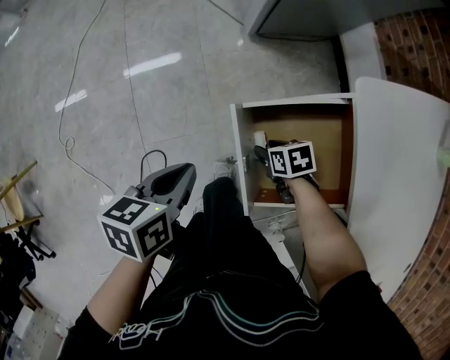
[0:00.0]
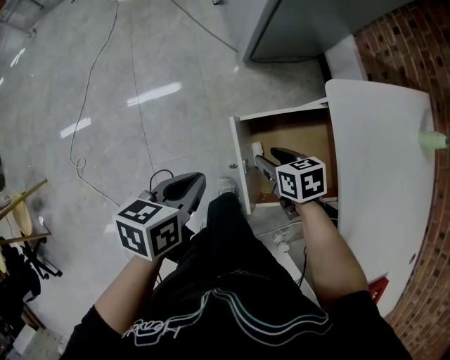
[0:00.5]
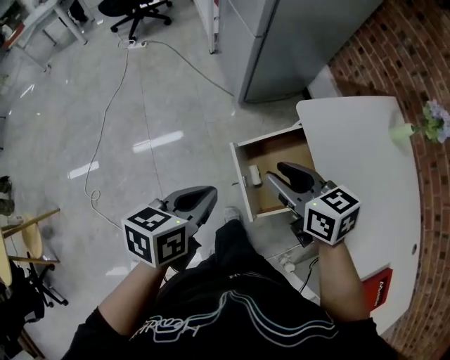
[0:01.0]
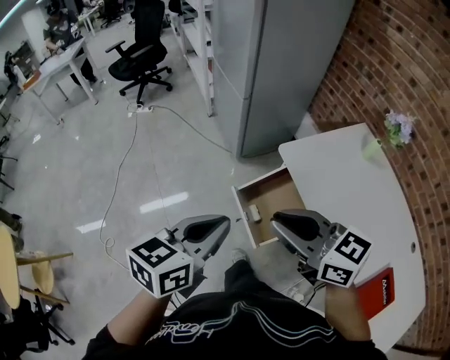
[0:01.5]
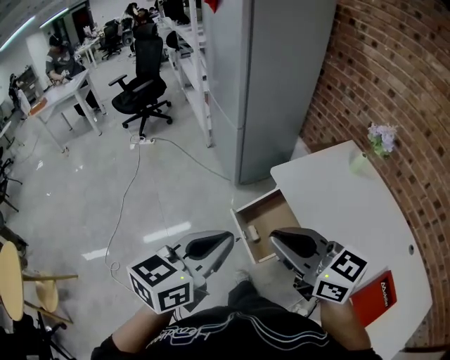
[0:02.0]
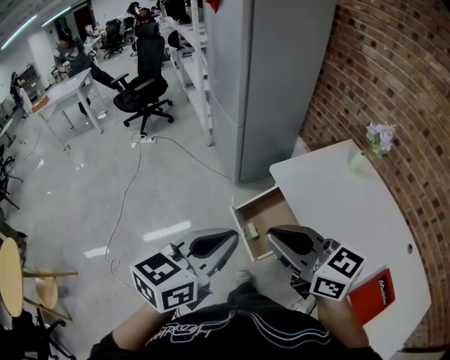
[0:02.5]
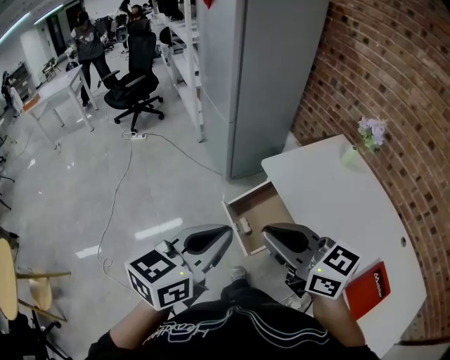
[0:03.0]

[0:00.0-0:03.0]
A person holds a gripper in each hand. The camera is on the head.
0:00.0 to 0:01.5: The left gripper moves upward, about 35 cm, and turns by roughly 40 degrees. The right gripper shifts approximately 60 cm upward, tilts its fingers roughly 50 degrees upward, and closes its fingers.
0:01.5 to 0:03.0: The left gripper shifts roughly 10 cm upward and backward. The right gripper travels backward and upward by some 10 cm.

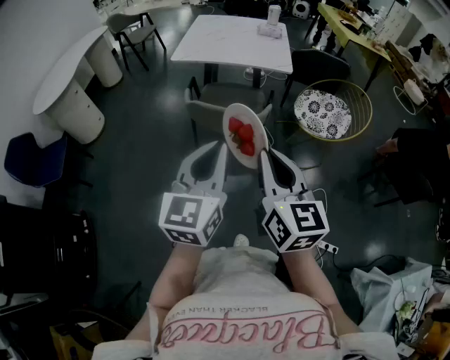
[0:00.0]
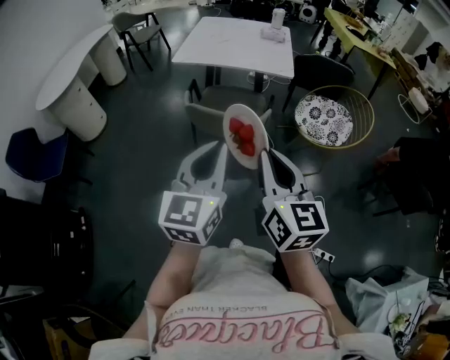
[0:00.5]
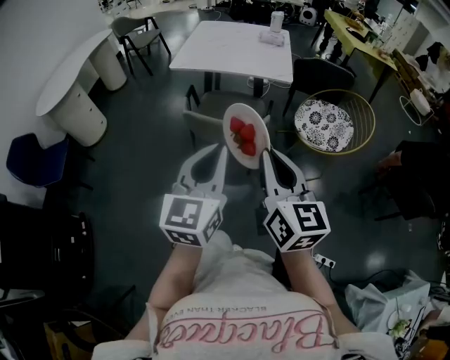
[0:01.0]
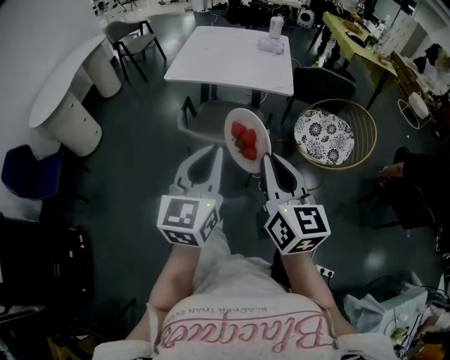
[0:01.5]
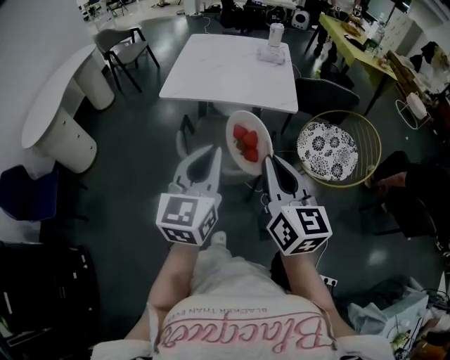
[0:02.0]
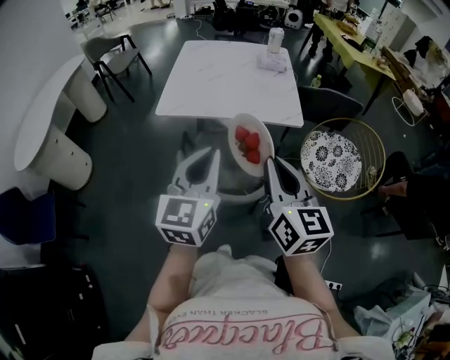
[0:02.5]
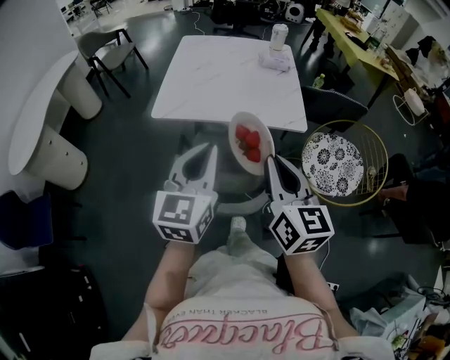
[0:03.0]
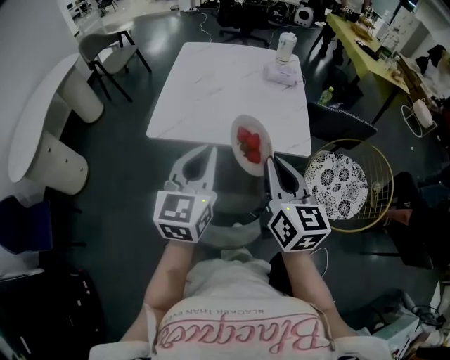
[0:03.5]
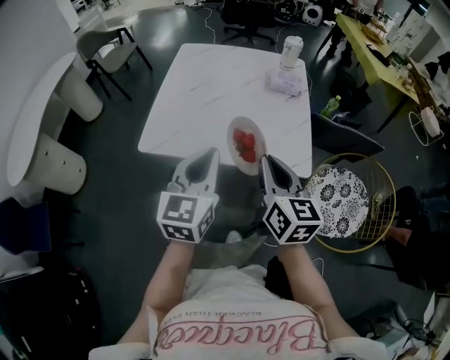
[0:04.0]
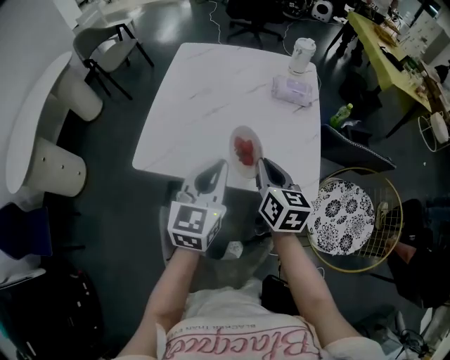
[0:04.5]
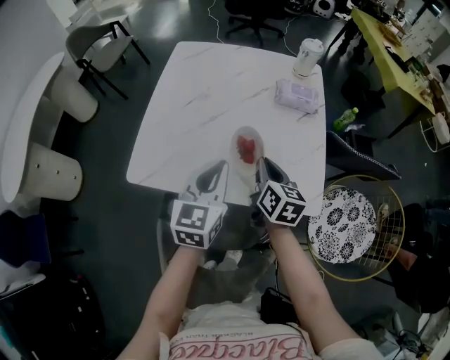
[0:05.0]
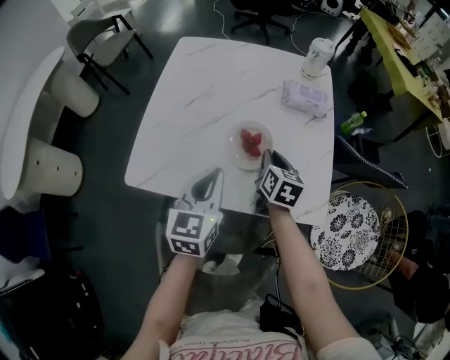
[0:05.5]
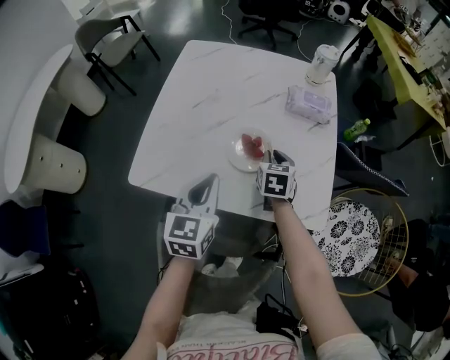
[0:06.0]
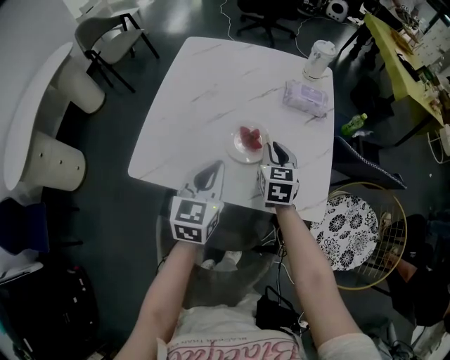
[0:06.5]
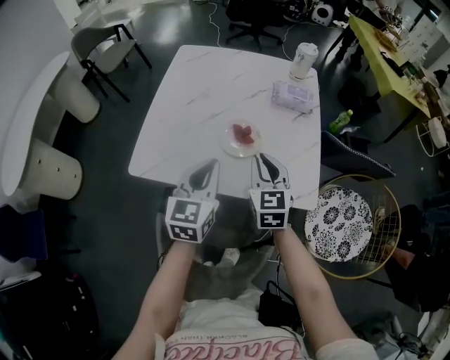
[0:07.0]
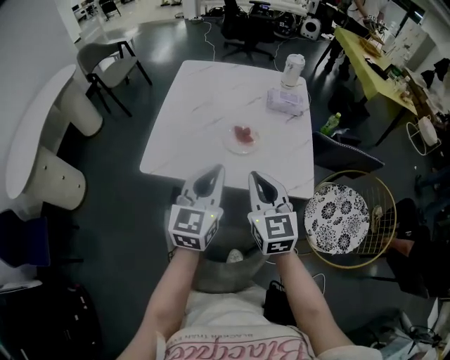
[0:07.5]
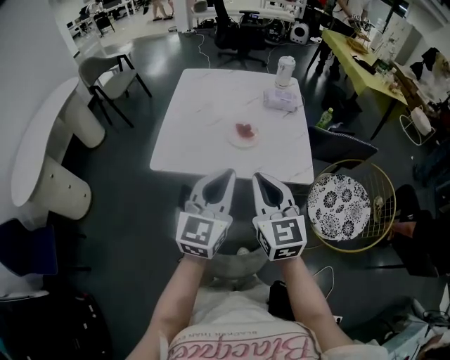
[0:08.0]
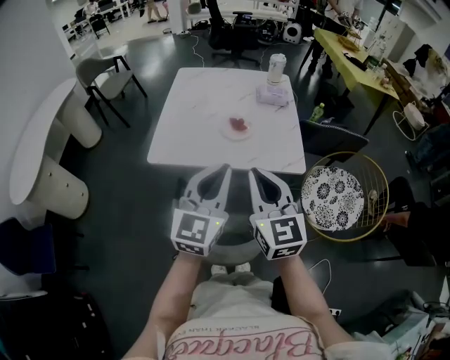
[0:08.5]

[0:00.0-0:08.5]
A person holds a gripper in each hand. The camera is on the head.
0:00.0 to 0:02.0: The grippers both shift forward by approximately 25 cm.
0:02.0 to 0:04.0: The two grippers go some 40 cm forward.
0:04.0 to 0:06.5: The left gripper is displaced forward and downward by roughly 20 cm. Meanwhile the right gripper goes roughly 35 cm forward and downward, and swivels about 30 degrees.
0:06.5 to 0:08.5: Both grippers travel together backward and upward, approximately 40 cm. The left gripper swivels roughly 30 degrees. The right gripper rotates roughly 30 degrees.

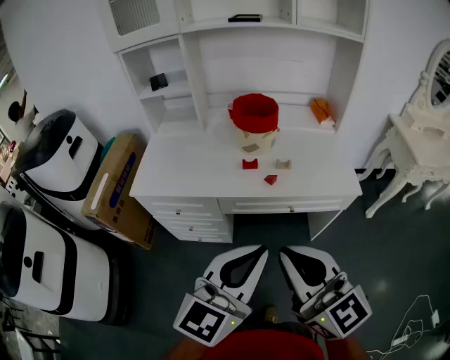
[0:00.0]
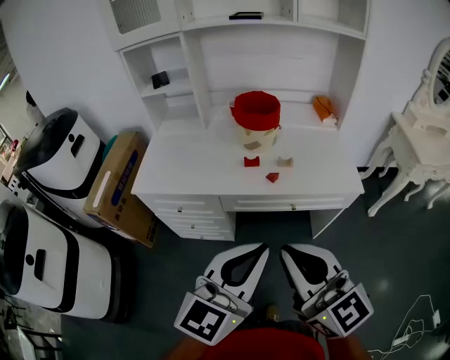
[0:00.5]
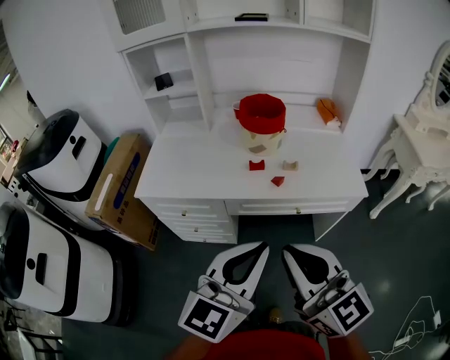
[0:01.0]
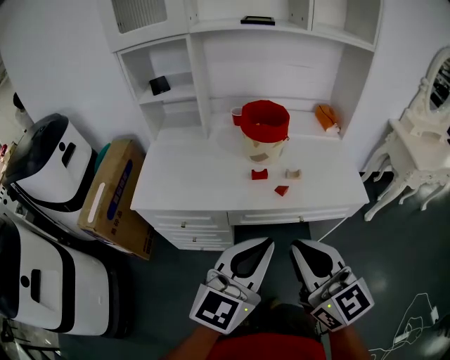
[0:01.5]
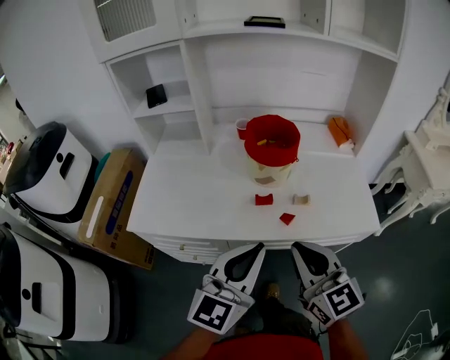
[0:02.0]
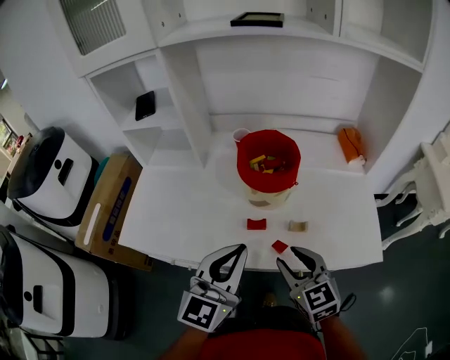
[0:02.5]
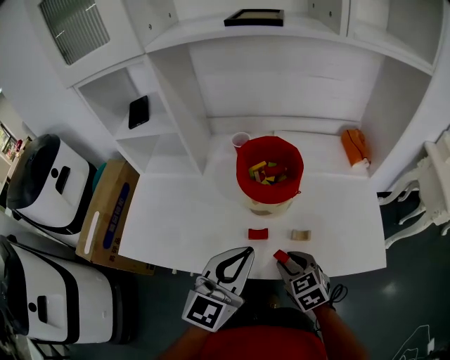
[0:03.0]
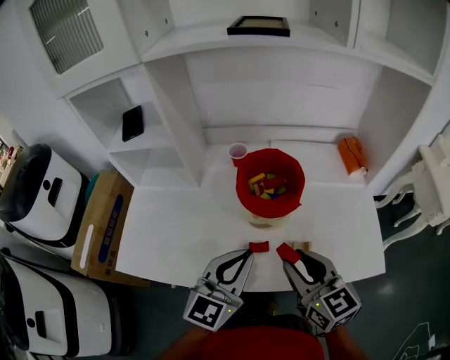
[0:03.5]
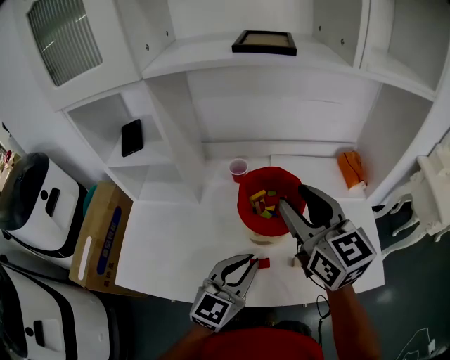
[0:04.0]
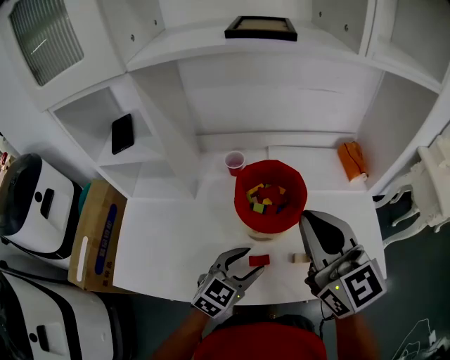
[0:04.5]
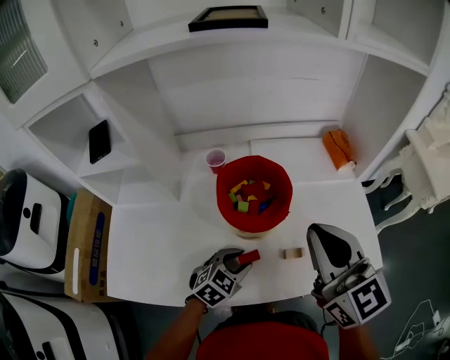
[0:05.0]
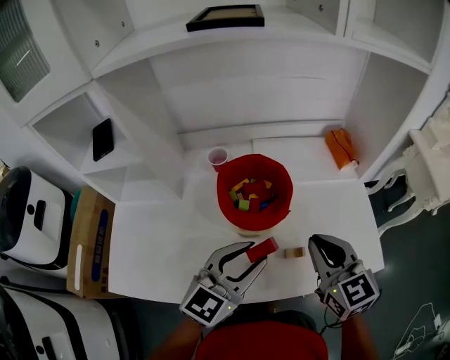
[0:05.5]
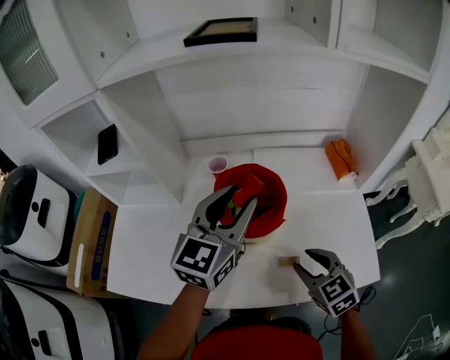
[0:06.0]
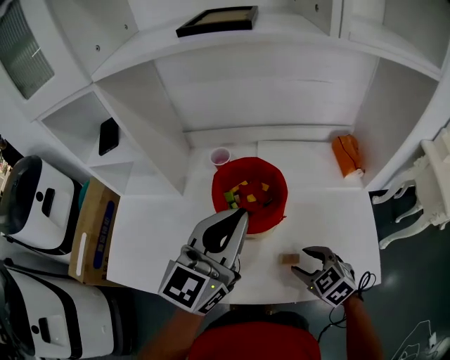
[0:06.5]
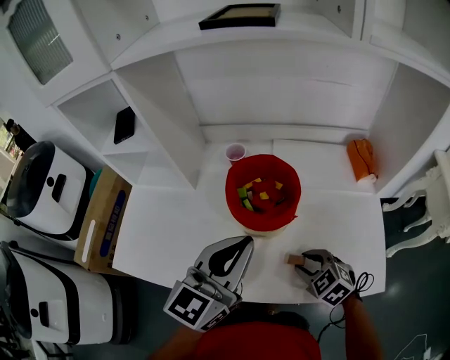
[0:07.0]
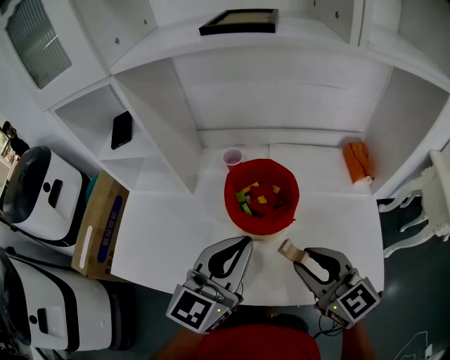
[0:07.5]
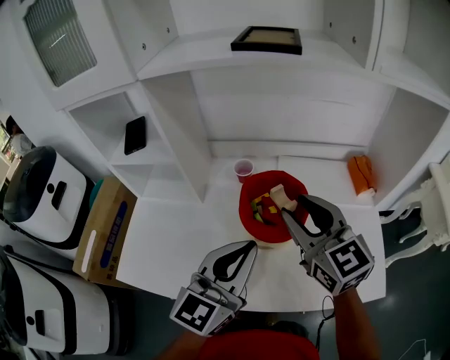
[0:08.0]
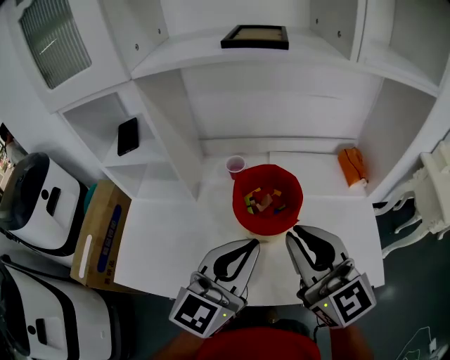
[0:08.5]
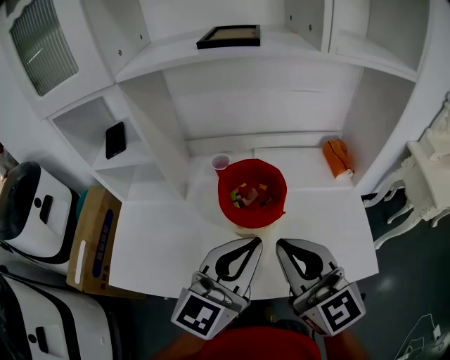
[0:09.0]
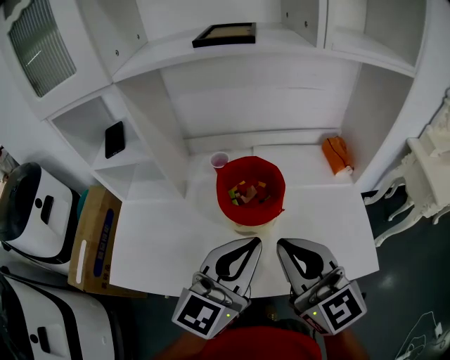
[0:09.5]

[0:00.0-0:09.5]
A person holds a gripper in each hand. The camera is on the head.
0:00.0 to 0:02.0: The left gripper shifts some 20 cm forward. The right gripper heads forward and downward, covering some 20 cm.
0:02.0 to 0:04.0: The two grippers go about 25 cm forward. The right gripper opens its fingers.
0:04.0 to 0:05.5: The right gripper shifts roughly 15 cm downward, to the right and backward, and closes; the left gripper reaches roughly 15 cm downward, then returns, and opens up.
0:05.5 to 0:07.5: The right gripper reaches approximately 20 cm downward, then returns, rotates some 20 degrees, and opens; the left gripper heads upward, covering some 5 cm, goes forward and returns, about 10 cm each way, swivels about 20 degrees, and closes its fingers.
0:07.5 to 0:09.5: The left gripper changes place by about 5 cm. Meanwhile the right gripper shifts roughly 10 cm upward, moves roughly 10 cm forward and comes back, changes its angle by roughly 20 degrees, and closes up.

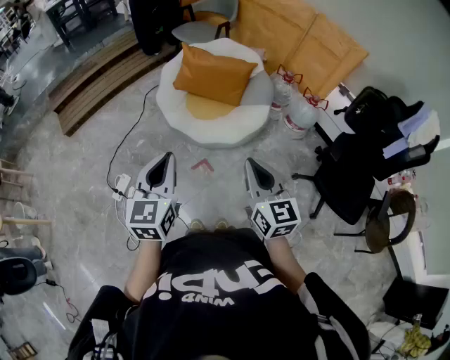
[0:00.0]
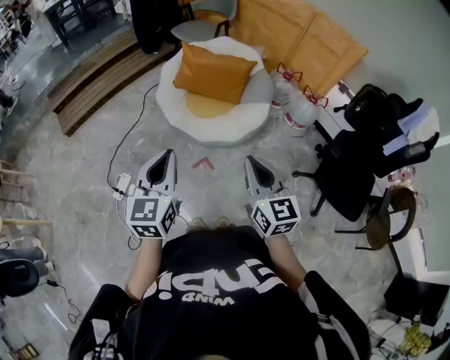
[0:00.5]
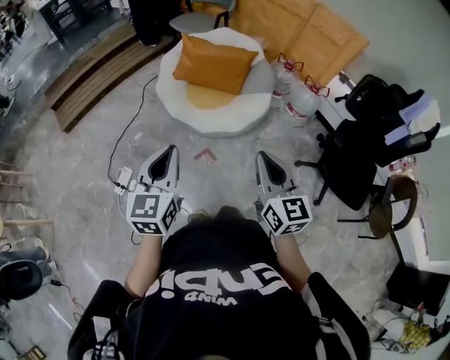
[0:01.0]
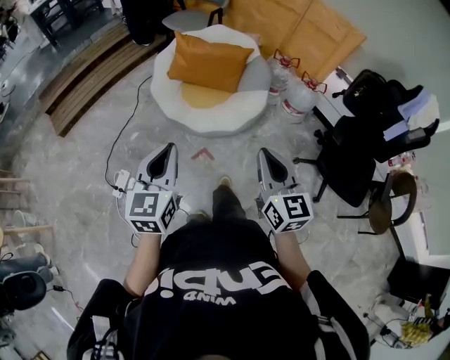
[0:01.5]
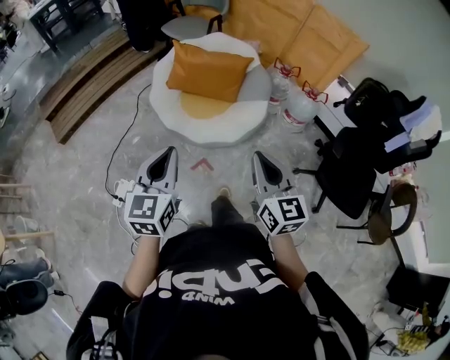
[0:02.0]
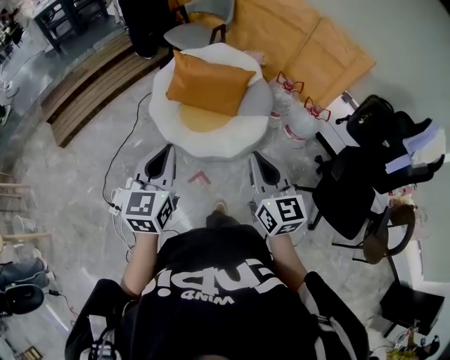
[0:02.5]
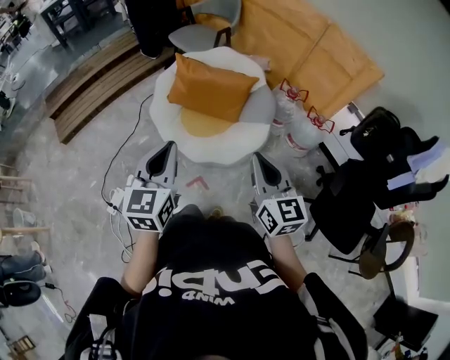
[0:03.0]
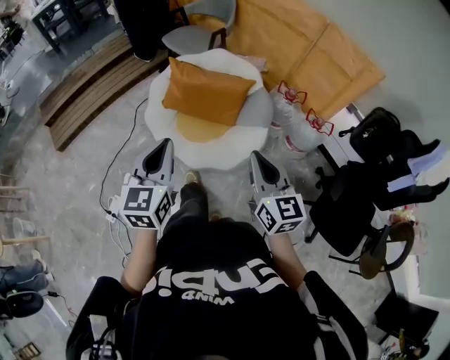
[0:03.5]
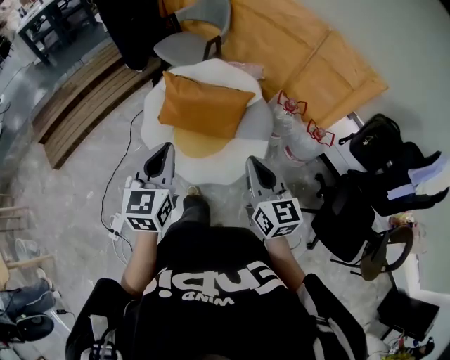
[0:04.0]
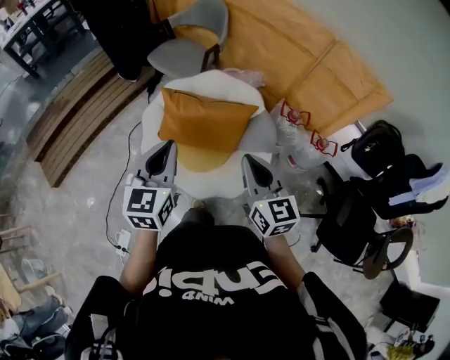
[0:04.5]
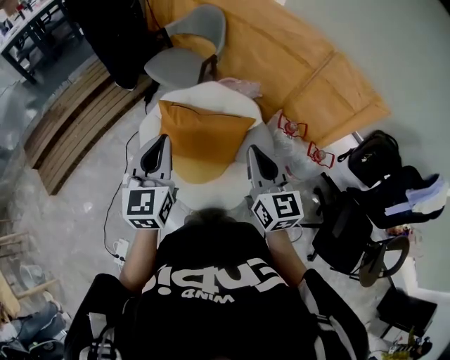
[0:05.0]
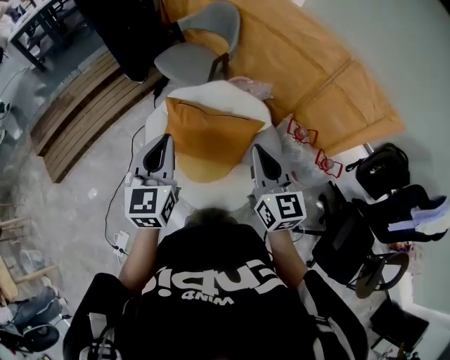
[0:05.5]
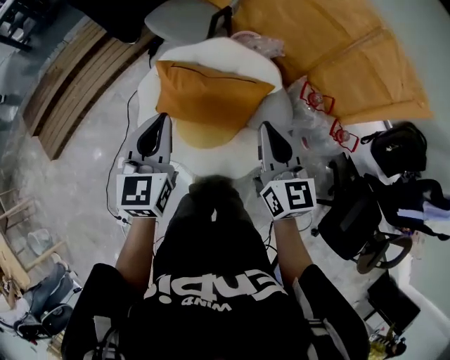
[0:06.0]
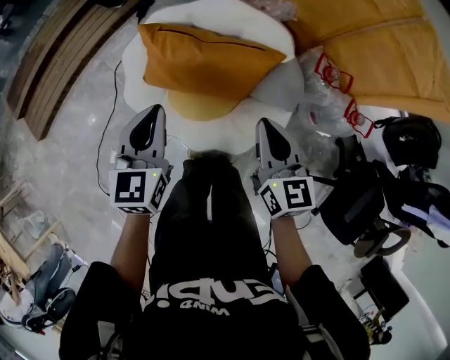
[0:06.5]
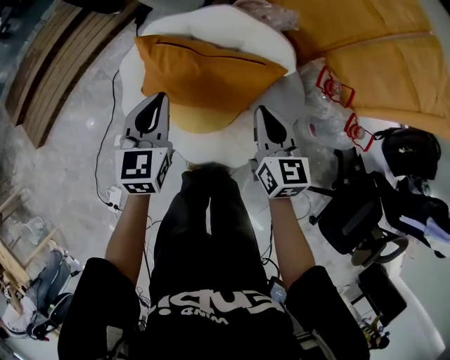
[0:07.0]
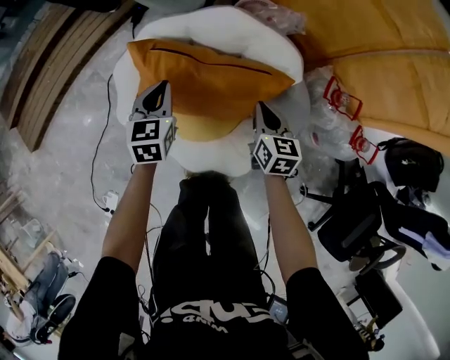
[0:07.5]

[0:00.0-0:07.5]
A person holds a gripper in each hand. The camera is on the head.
0:00.0 to 0:02.0: Both grippers move forward, some 5 cm.
0:02.0 to 0:04.0: The two grippers go roughly 30 cm forward.
0:04.0 to 0:05.5: The two grippers go some 25 cm forward.
0:05.5 to 0:07.5: The grippers both shift downward and forward by roughly 50 cm. The left gripper rotates about 30 degrees. Meanwhile the right gripper turns by roughly 30 degrees.
